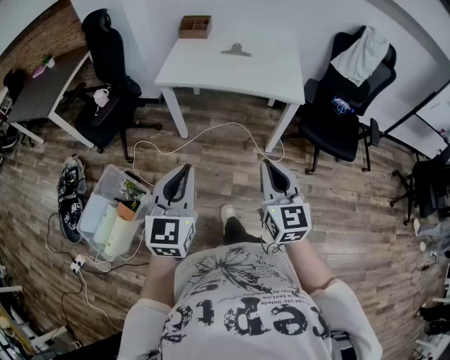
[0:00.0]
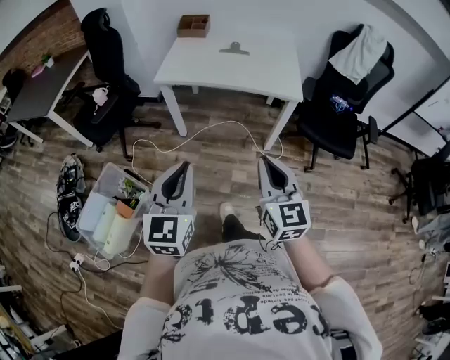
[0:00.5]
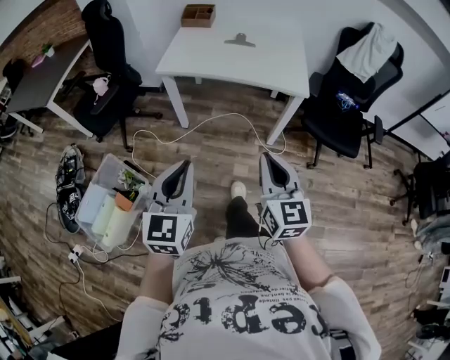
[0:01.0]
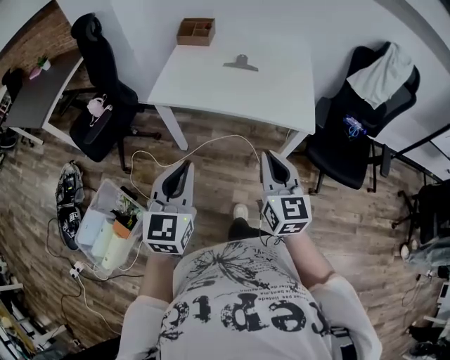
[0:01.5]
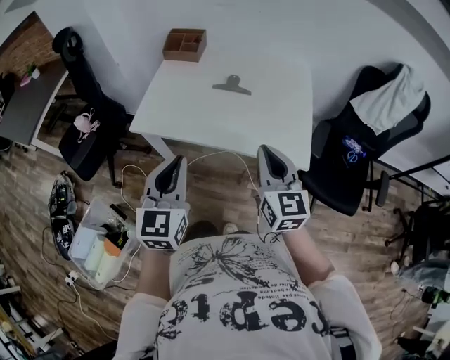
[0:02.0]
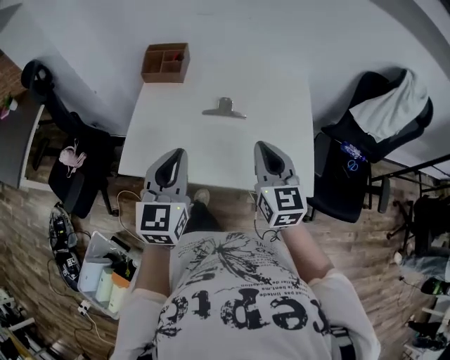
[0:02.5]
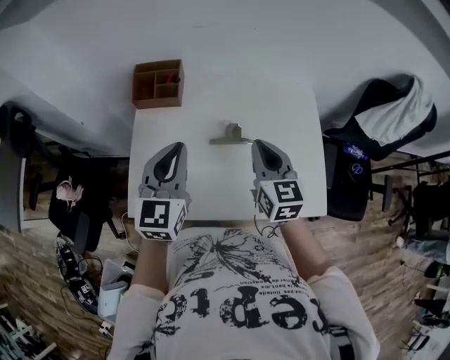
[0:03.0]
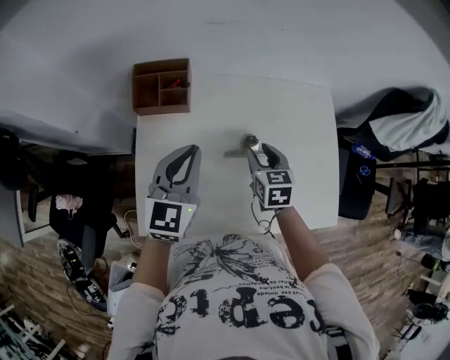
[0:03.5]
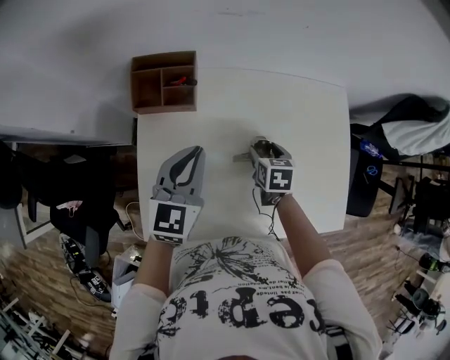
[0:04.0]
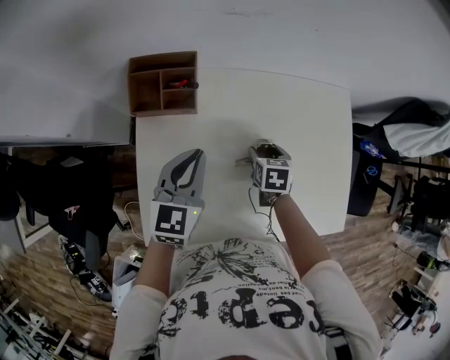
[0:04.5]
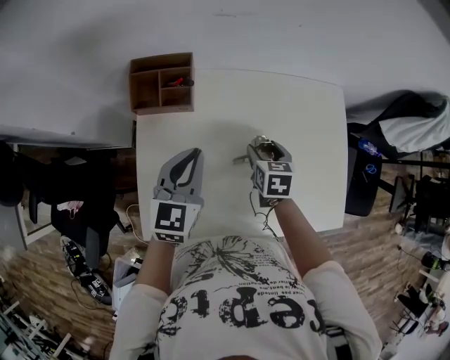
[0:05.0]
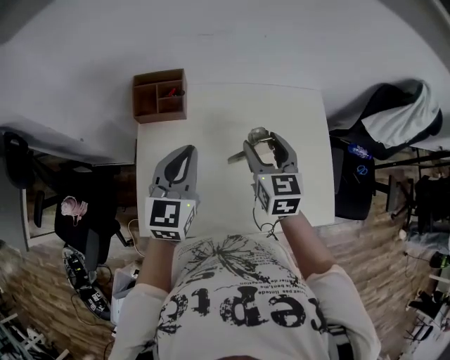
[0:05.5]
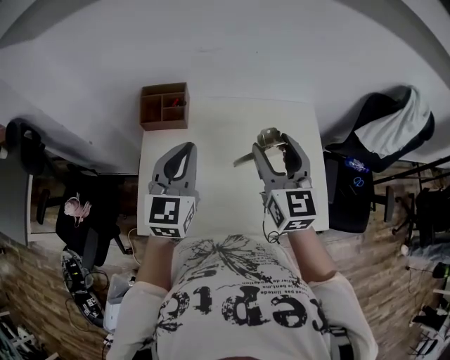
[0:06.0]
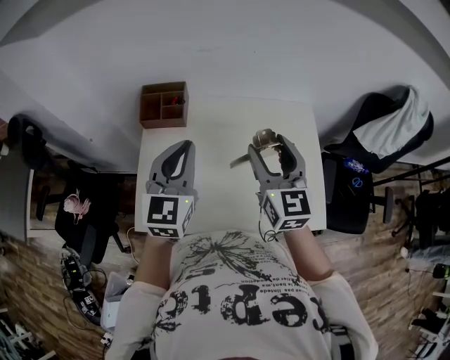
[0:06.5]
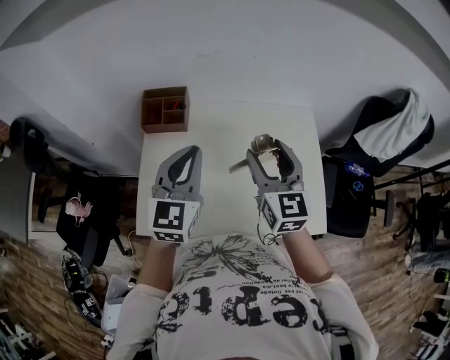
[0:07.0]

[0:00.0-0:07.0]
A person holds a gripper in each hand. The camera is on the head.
0:00.0 to 0:02.0: Both grippers move forward, some 40 cm.
0:02.0 to 0:03.5: The two grippers travel together, forward, some 40 cm. The right gripper travels downward by about 20 cm, points its fingers approximately 30 degrees further downward, and opens; the left gripper swivels roughly 20 degrees.
0:03.5 to 0:05.0: Both grippers travel together downward, about 5 cm. The right gripper opens.
0:05.0 to 0:07.0: The left gripper shifts roughly 20 cm upward, backward and to the right; the right gripper moves upward, some 30 cm, and tips its fingers upward by approximately 40 degrees.

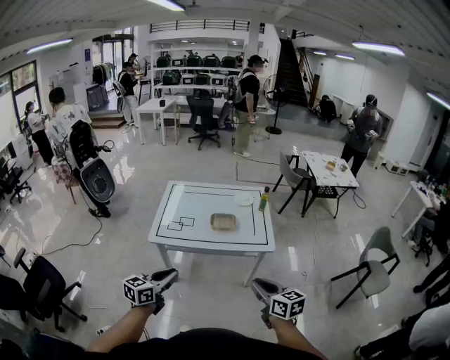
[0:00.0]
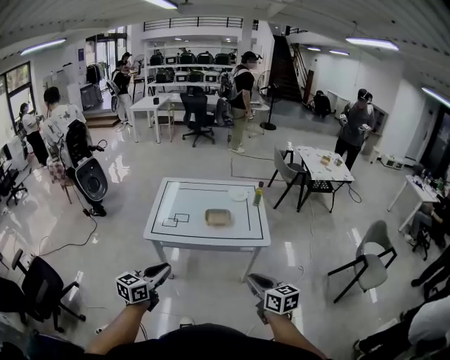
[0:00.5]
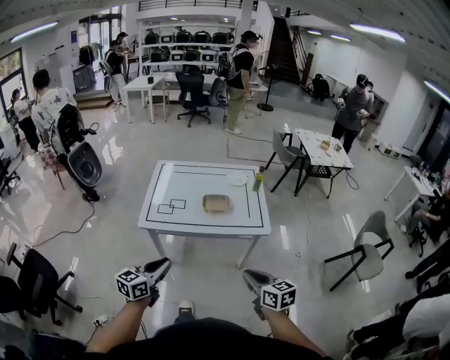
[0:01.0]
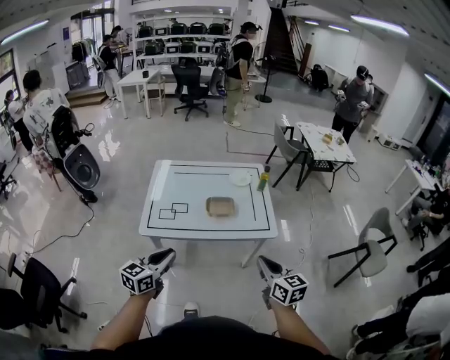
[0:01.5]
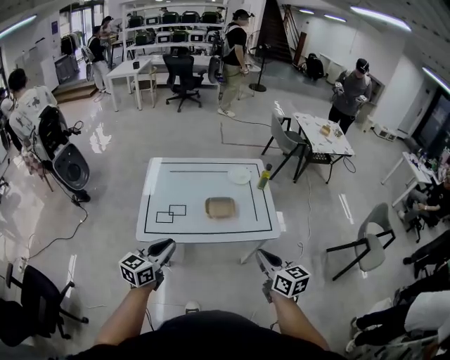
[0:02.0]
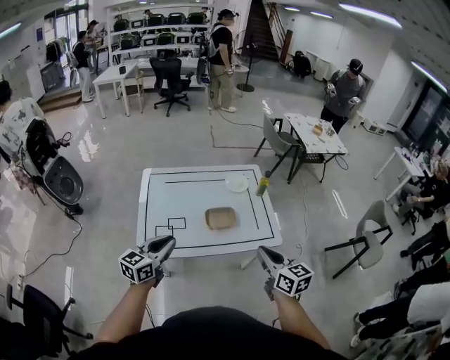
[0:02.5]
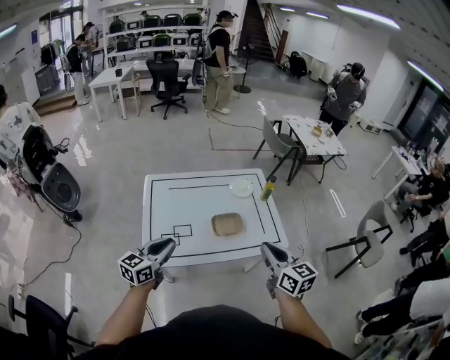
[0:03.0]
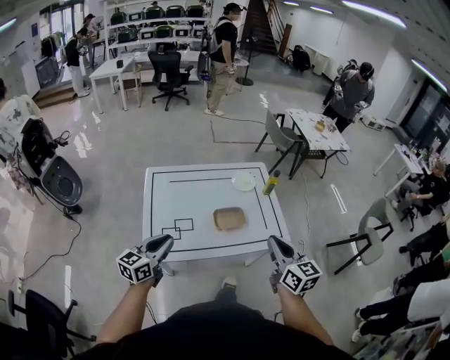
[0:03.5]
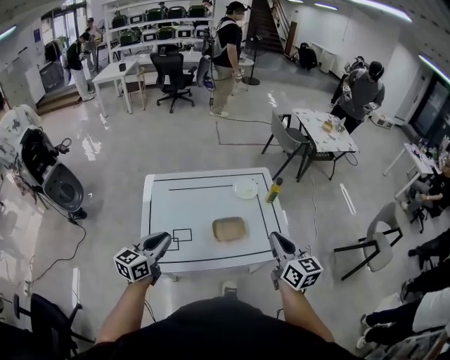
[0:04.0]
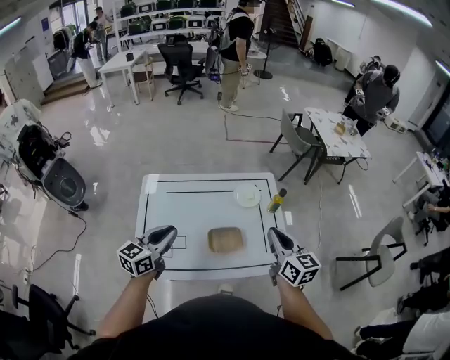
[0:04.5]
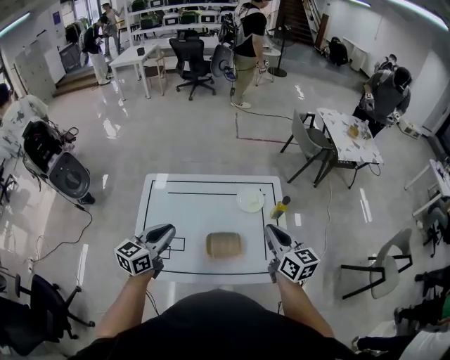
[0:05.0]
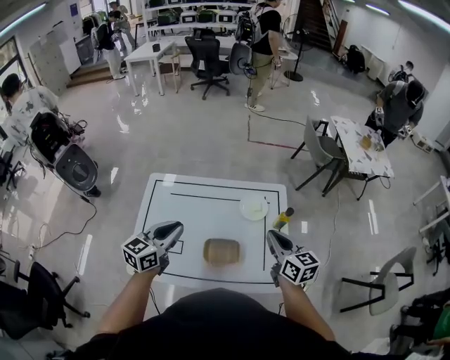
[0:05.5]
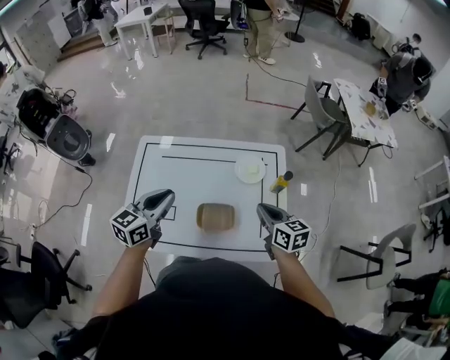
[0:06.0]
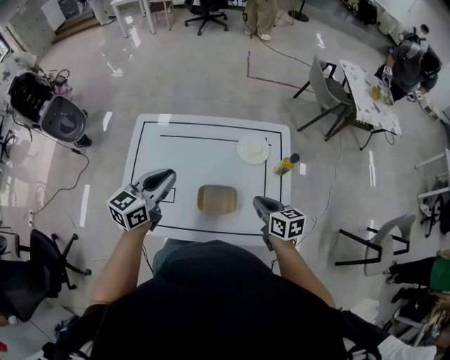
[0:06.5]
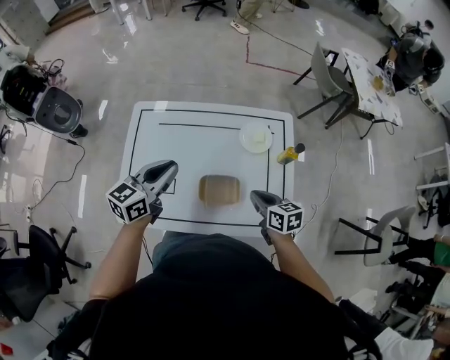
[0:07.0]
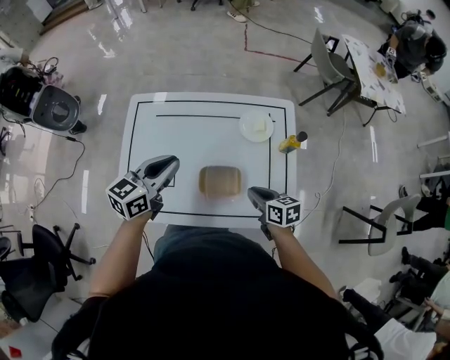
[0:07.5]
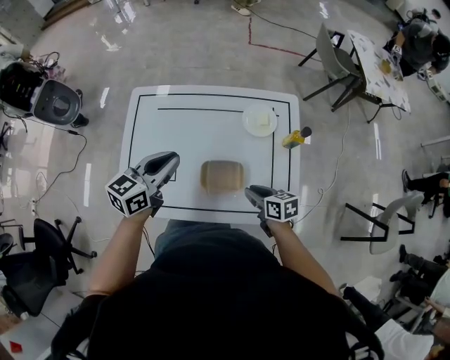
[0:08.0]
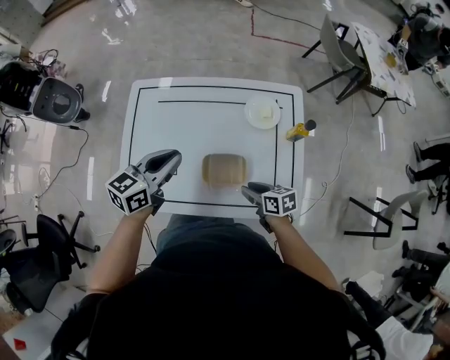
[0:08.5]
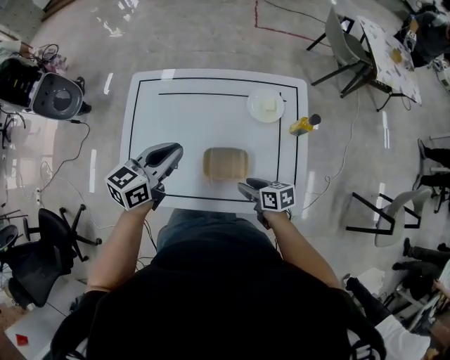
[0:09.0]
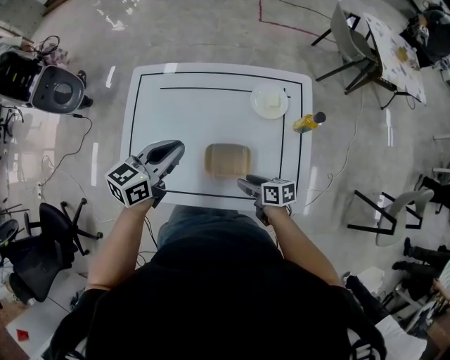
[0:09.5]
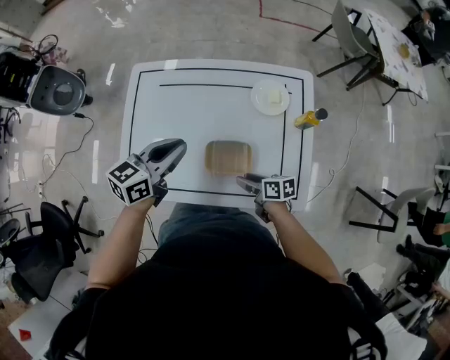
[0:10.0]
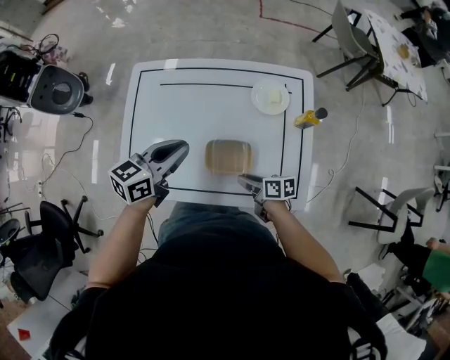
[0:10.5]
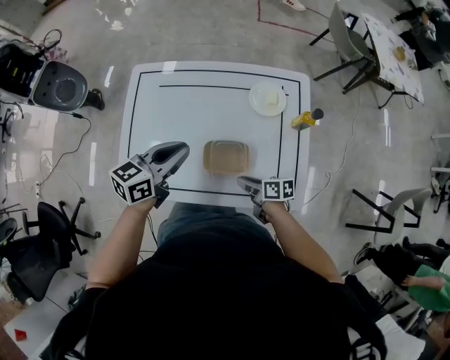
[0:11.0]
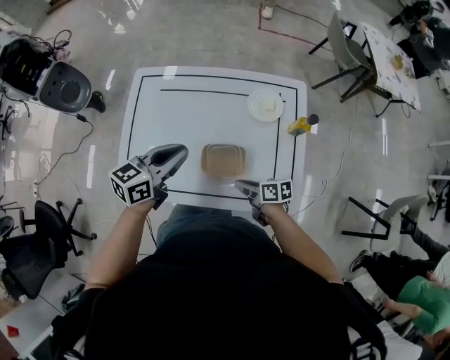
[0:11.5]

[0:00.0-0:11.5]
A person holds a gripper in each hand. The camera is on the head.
0:00.0 to 0:02.0: The grippers both shift forward by some 25 cm.
0:02.0 to 0:04.0: The right gripper is displaced forward by roughly 20 cm, while the left gripper travels forward and to the left by approximately 25 cm.
0:04.0 to 0:06.0: The right gripper goes some 30 cm forward and downward, and rotates roughly 30 degrees; the left gripper is displaced forward and to the right by about 25 cm.
0:06.0 to 0:07.5: The left gripper goes approximately 5 cm downward. The right gripper moves downward, approximately 15 cm.
0:07.5 to 0:09.5: The right gripper travels downward by roughly 10 cm, and opens its fingers.
0:09.5 to 0:11.5: The right gripper closes.

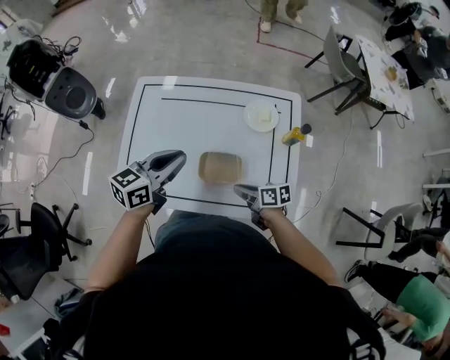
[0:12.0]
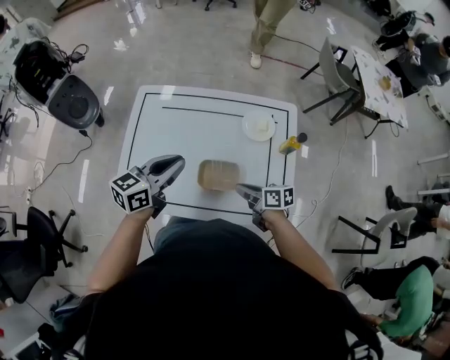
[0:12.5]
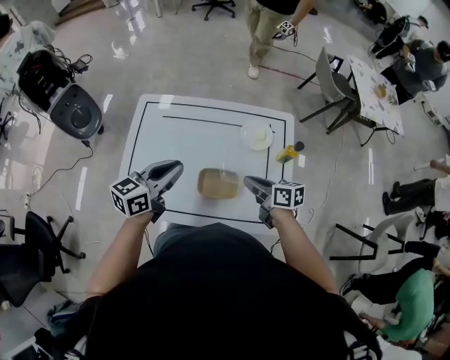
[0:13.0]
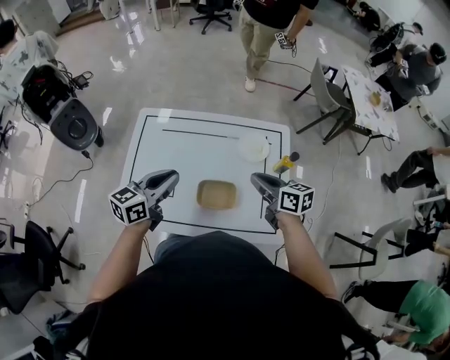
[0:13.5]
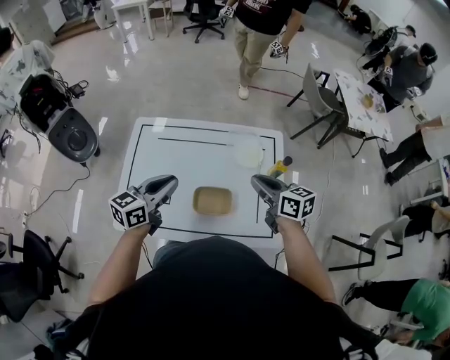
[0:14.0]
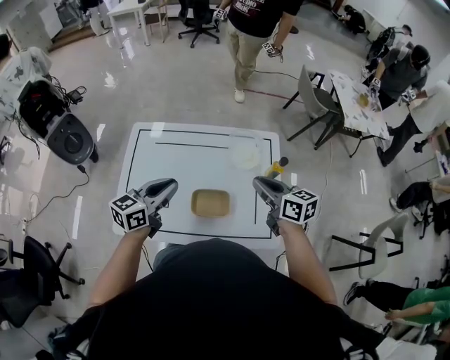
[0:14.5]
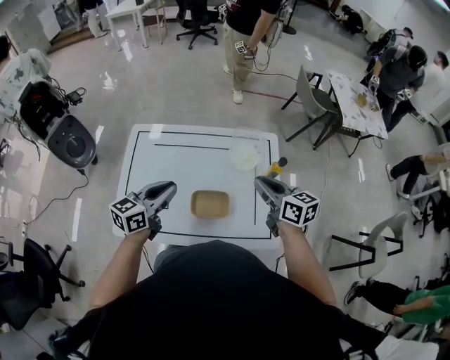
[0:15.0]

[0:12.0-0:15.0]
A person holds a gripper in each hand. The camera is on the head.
0:12.0 to 0:13.5: The right gripper is displaced upward and forward by approximately 20 cm, and rotates roughly 30 degrees.
0:13.5 to 0:15.0: The right gripper travels upward and to the right by roughly 10 cm.

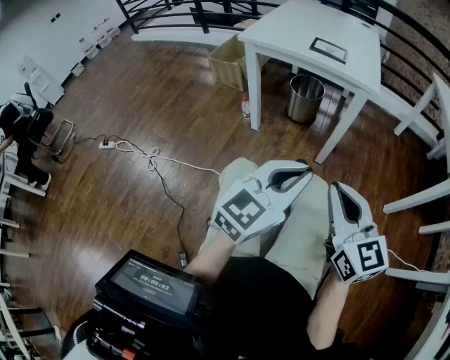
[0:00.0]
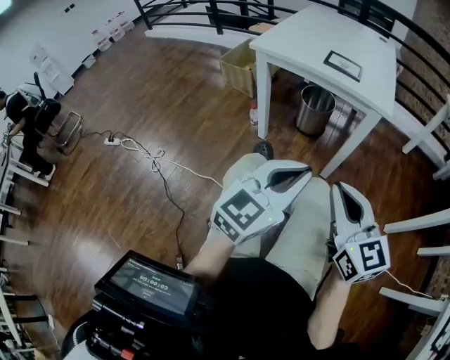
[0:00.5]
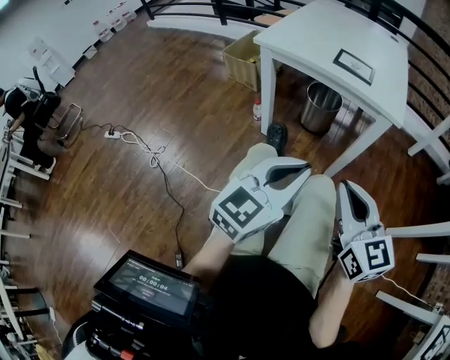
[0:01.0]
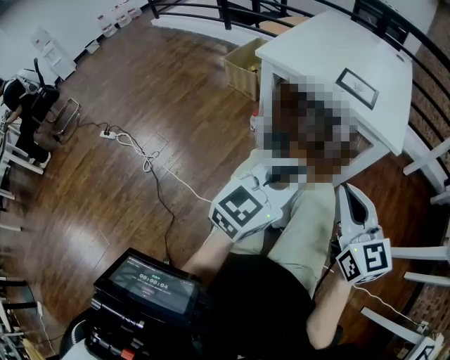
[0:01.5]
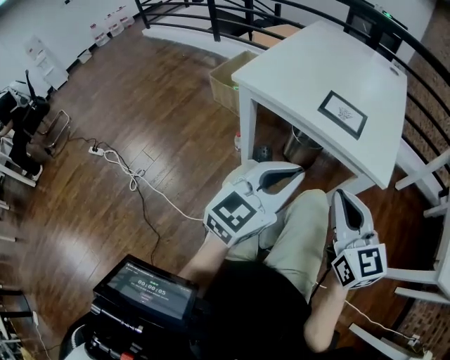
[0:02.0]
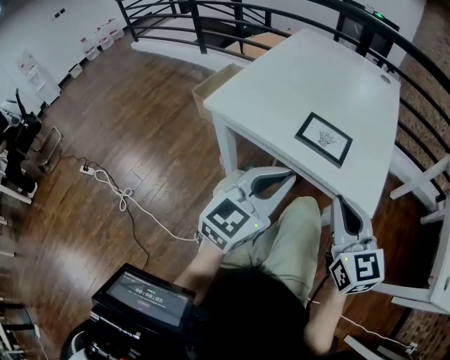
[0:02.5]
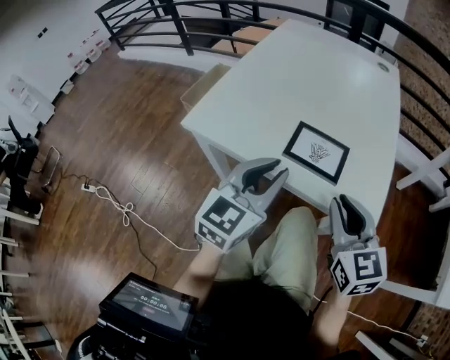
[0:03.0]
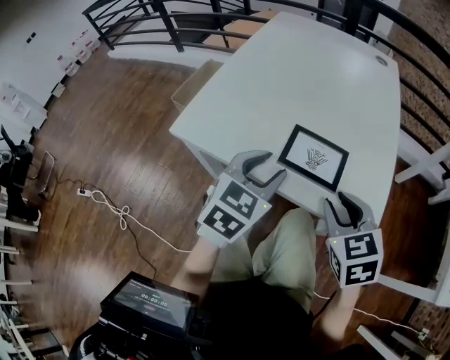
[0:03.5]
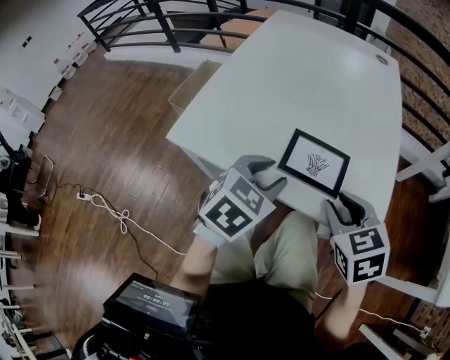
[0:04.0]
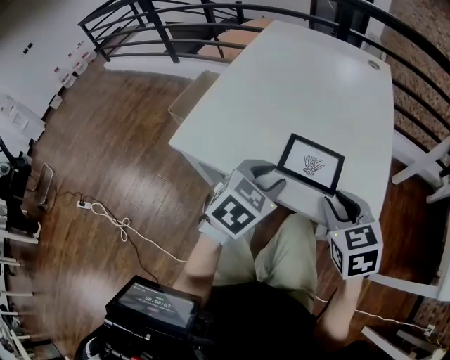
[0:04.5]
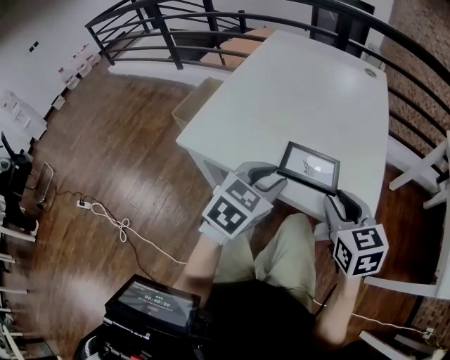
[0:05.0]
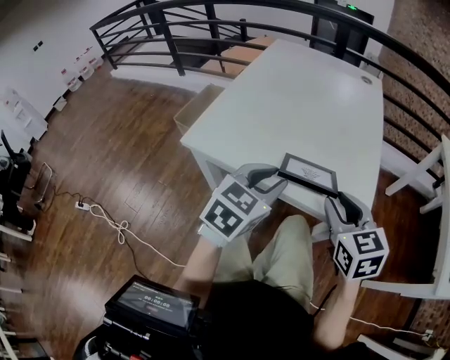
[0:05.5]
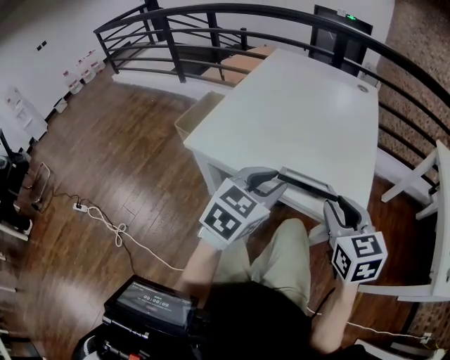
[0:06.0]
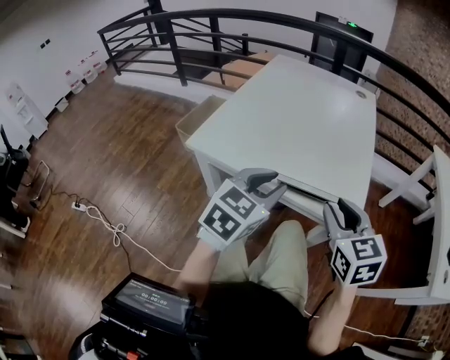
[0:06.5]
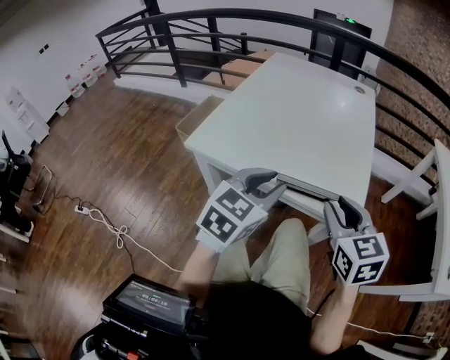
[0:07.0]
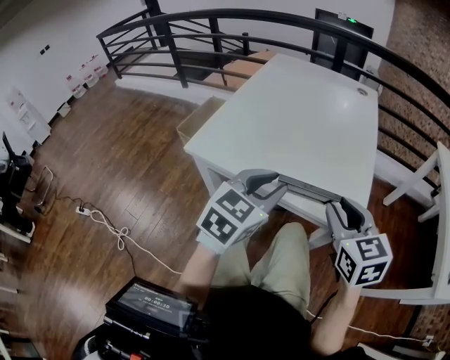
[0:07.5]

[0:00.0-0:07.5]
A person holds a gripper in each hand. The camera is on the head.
0:00.0 to 0:02.0: Both grippers travel together forward, approximately 30 cm.
0:02.0 to 0:04.0: Both grippers move forward, roughly 20 cm. The left gripper points its fingers some 40 degrees further downward, and opens, while the right gripper points its fingers about 40 degrees further downward, and opens its fingers.
0:04.0 to 0:05.5: The grippers both shift upward by approximately 5 cm.
0:05.5 to 0:07.5: The grippers move only a little.
